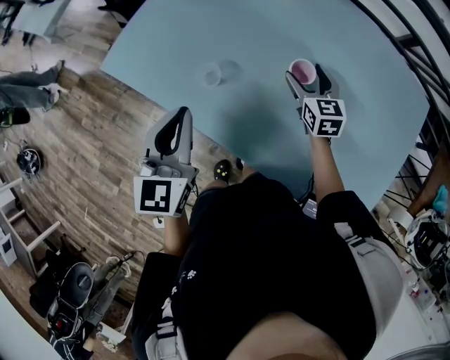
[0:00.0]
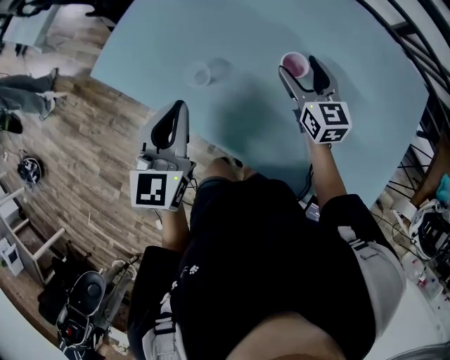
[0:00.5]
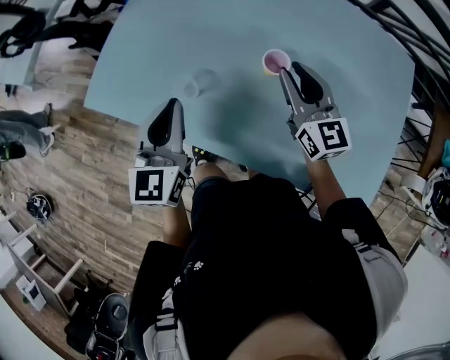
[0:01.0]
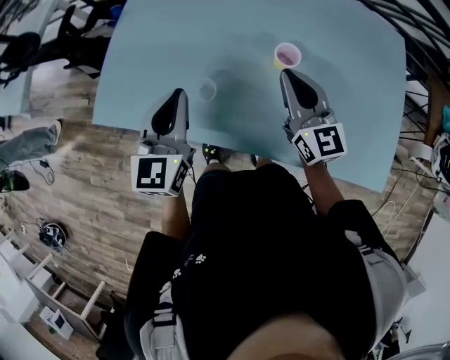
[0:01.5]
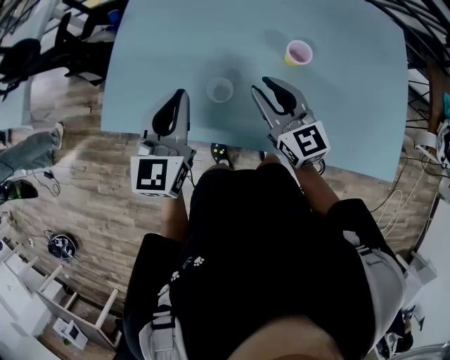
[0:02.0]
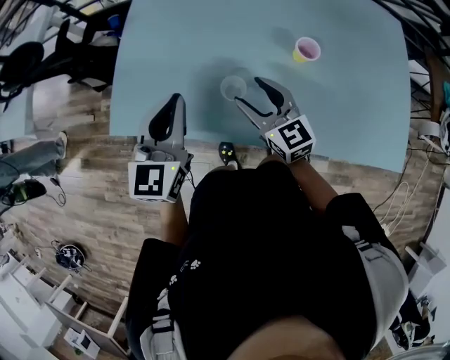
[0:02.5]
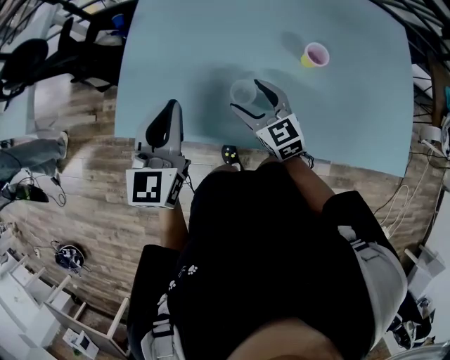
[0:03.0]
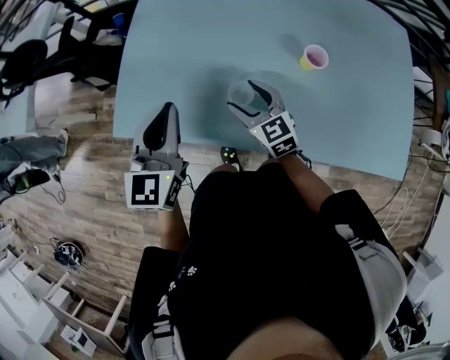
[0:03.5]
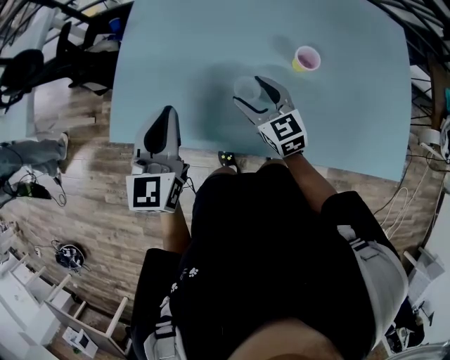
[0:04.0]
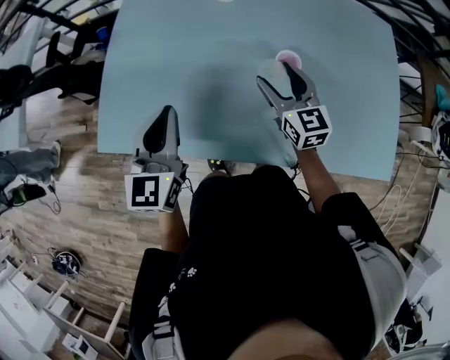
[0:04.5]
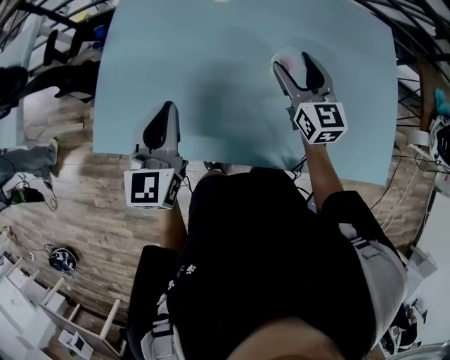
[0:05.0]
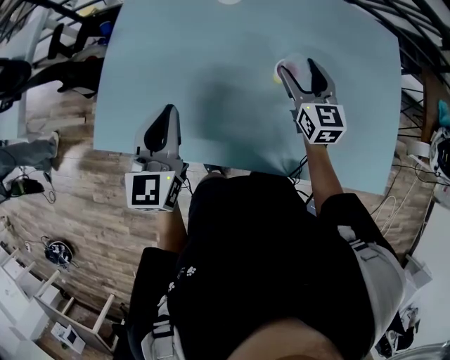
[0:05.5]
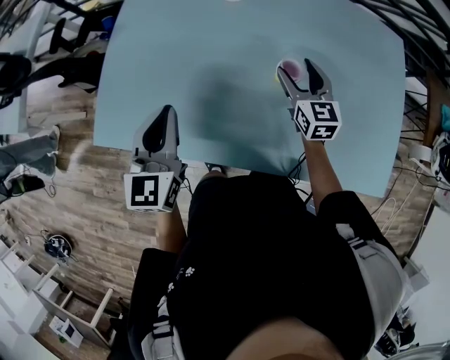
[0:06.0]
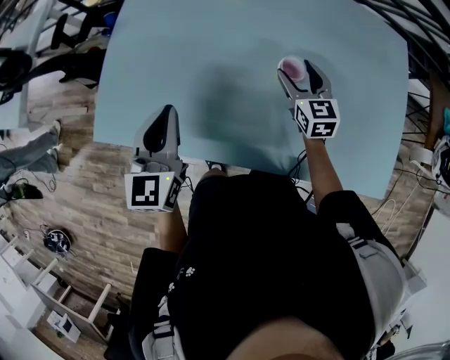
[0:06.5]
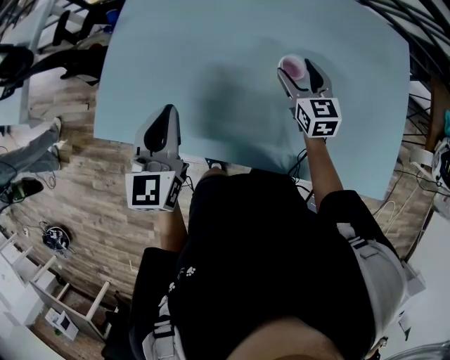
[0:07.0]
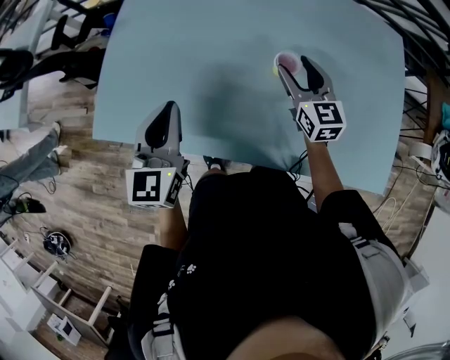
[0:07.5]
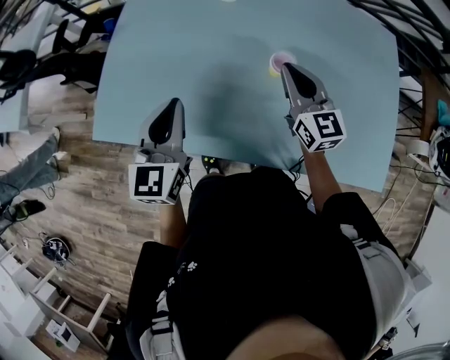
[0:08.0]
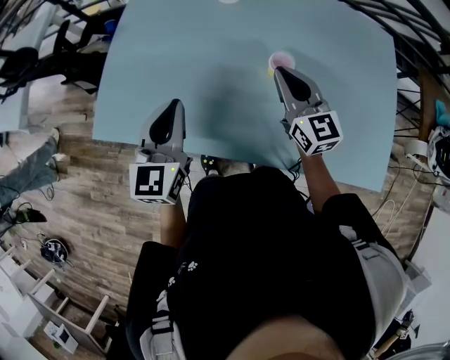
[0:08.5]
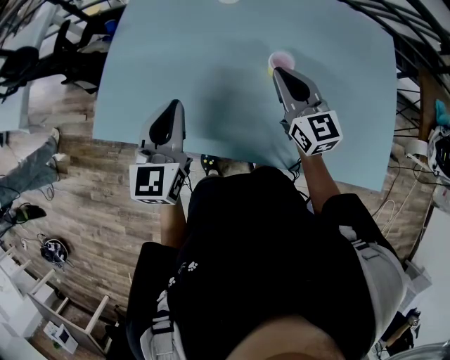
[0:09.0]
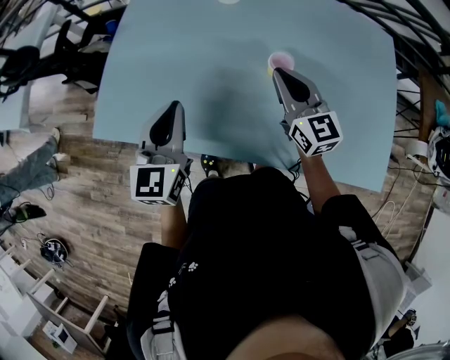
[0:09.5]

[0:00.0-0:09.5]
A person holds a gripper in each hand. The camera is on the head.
0:00.0 to 0:02.0: The left gripper goes roughly 10 cm forward and to the left, and changes its angle by approximately 30 degrees. Meanwhile the right gripper shifts some 20 cm to the left, backward and upward, and closes.
0:02.0 to 0:04.0: The right gripper shifts about 5 cm downward, and opens up; the left gripper shifts approximately 5 cm to the left.
0:04.0 to 0:05.5: The left gripper is displaced to the right by about 10 cm. Meanwhile the right gripper is displaced to the right and forward by roughly 20 cm, and turns by about 20 degrees.
0:05.5 to 0:07.5: The grippers stay close to where they were, moving slightly.
0:07.5 to 0:09.5: The right gripper is displaced upward and backward by approximately 10 cm, and closes.

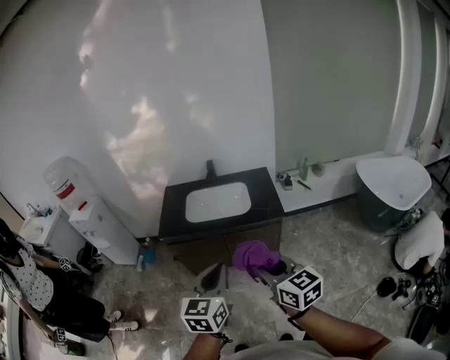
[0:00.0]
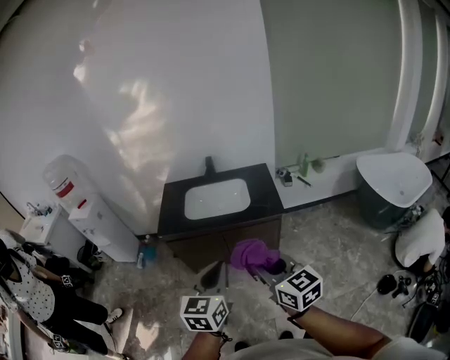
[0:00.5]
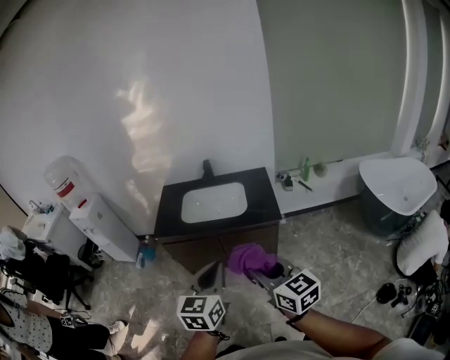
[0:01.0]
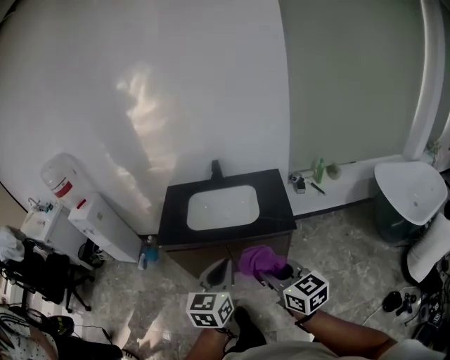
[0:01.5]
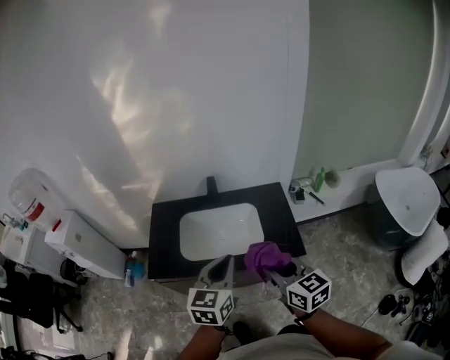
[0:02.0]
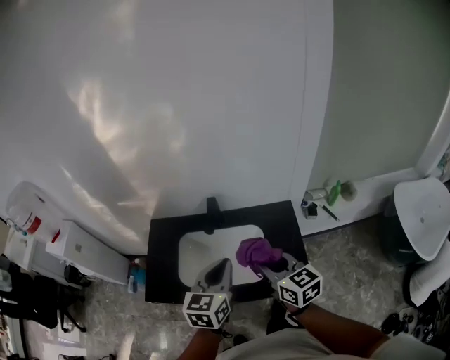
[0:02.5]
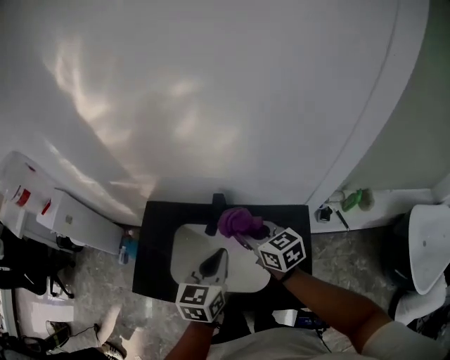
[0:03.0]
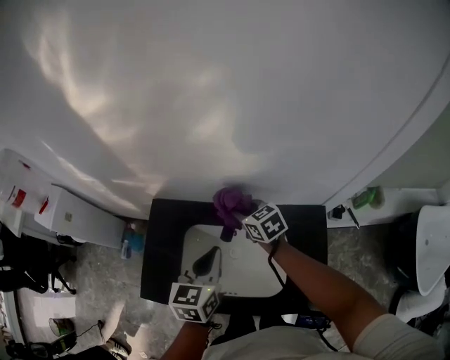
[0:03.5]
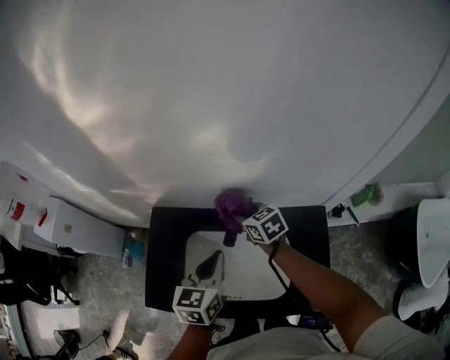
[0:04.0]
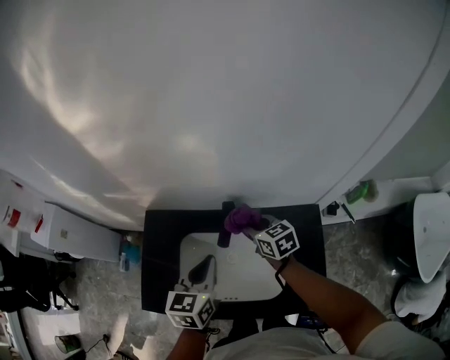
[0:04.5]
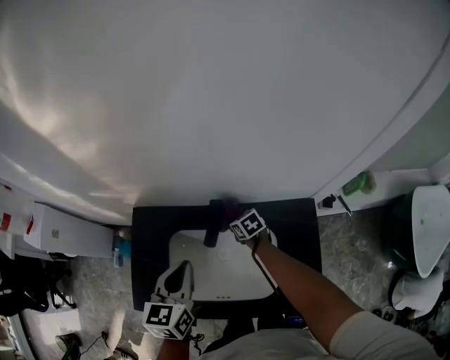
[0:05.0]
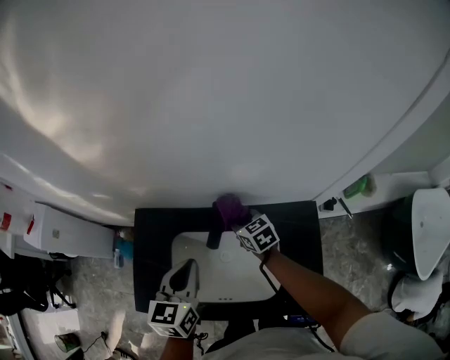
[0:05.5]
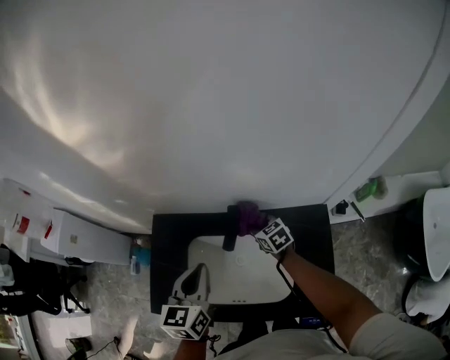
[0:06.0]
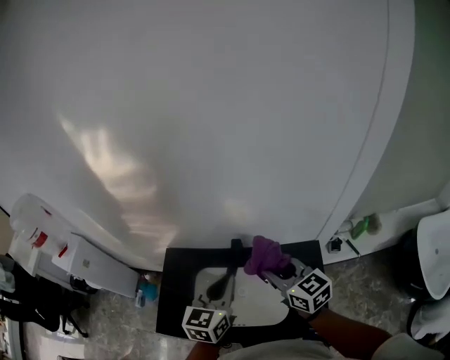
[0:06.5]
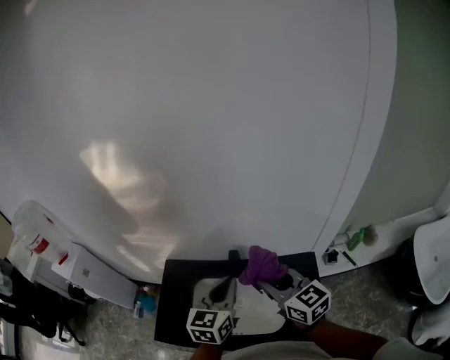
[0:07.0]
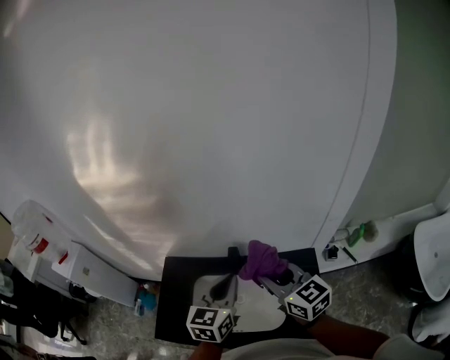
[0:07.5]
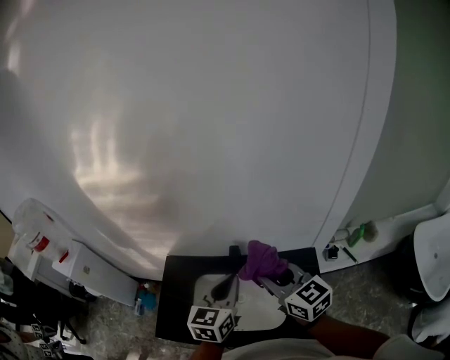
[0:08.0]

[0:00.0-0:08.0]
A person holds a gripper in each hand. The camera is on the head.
0:00.0 to 0:02.0: Both grippers travel together forward, about 40 cm.
0:02.0 to 0:04.0: Both grippers move forward, some 50 cm. The right gripper swivels roughly 30 degrees.
0:04.0 to 0:06.0: The right gripper travels downward and to the right by approximately 10 cm.
0:06.0 to 0:08.0: The right gripper goes about 40 cm upward and backward, and angles its fingers upward, by approximately 30 degrees; the left gripper goes approximately 15 cm upward and to the right.

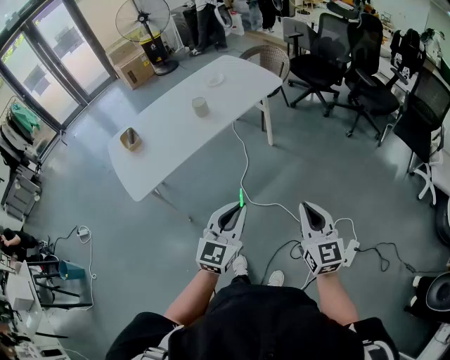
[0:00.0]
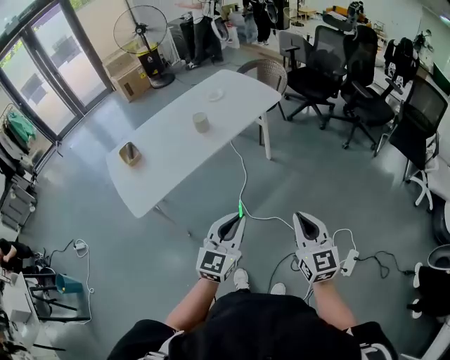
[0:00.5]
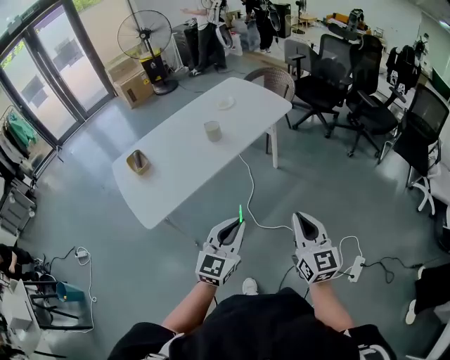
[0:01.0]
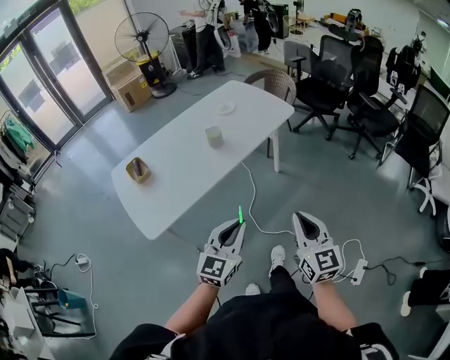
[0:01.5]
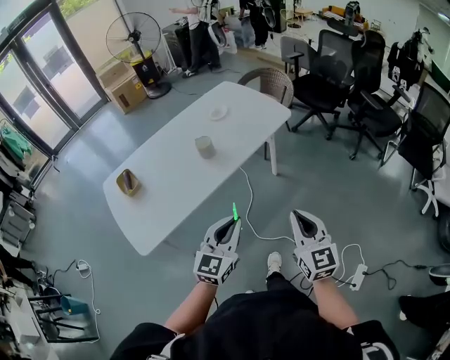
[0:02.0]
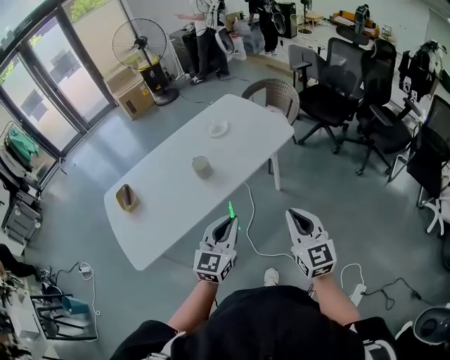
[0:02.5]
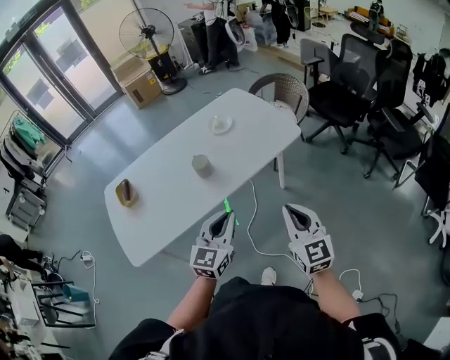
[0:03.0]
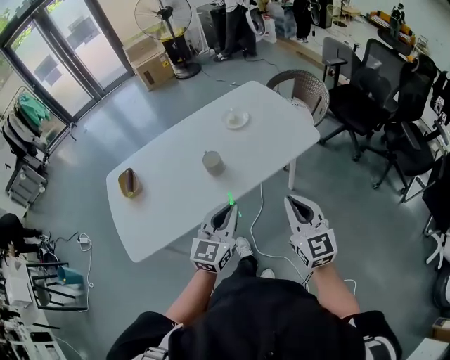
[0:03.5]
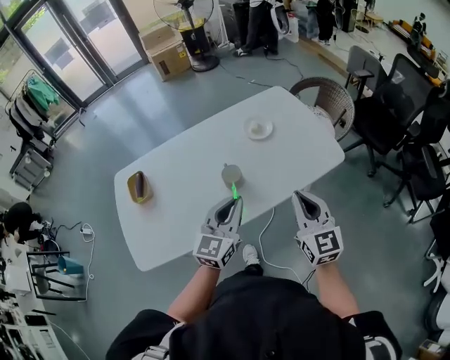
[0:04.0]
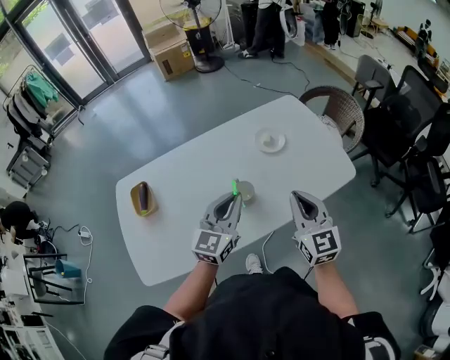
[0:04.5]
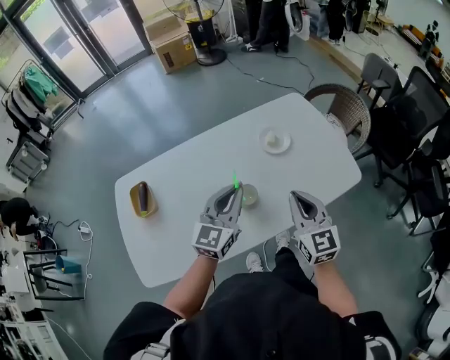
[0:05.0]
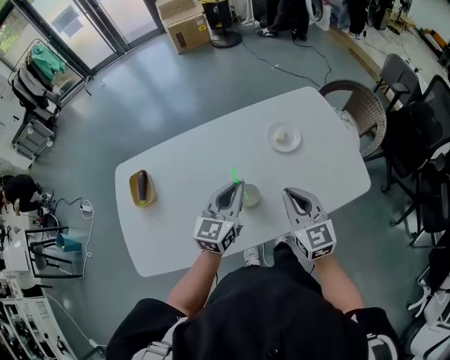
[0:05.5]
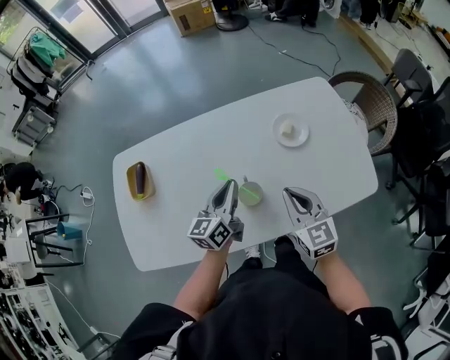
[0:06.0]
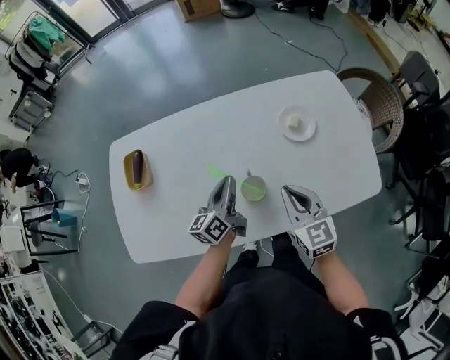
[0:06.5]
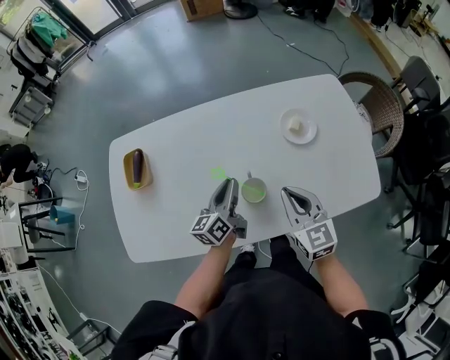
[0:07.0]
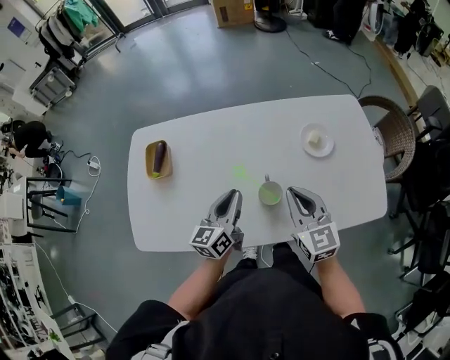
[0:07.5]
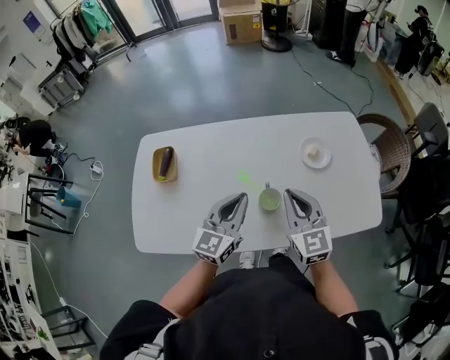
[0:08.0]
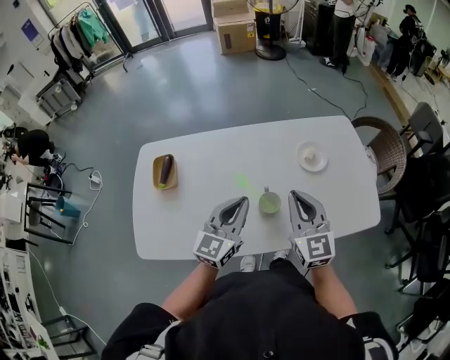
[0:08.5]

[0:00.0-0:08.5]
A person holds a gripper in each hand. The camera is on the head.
0:00.0 to 0:02.0: Both grippers travel together forward and to the left, some 20 cm.
0:02.0 to 0:04.0: Both grippers move forward, roughly 35 cm.
0:04.0 to 0:06.5: The two grippers go approximately 25 cm forward, downward and to the left. The left gripper rotates around the line of its fingers by roughly 40 degrees, counterclockwise from behind, while the right gripper rotates about 30 degrees.
0:06.5 to 0:08.5: The left gripper moves upward and backward, about 15 cm, and swivels roughly 40 degrees; the right gripper goes roughly 10 cm upward.

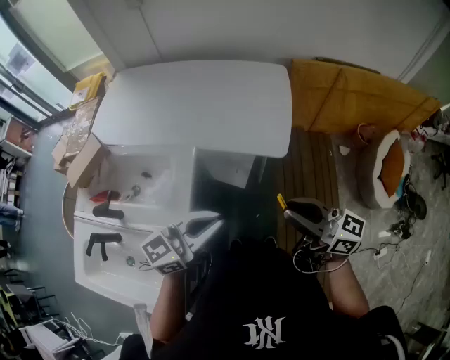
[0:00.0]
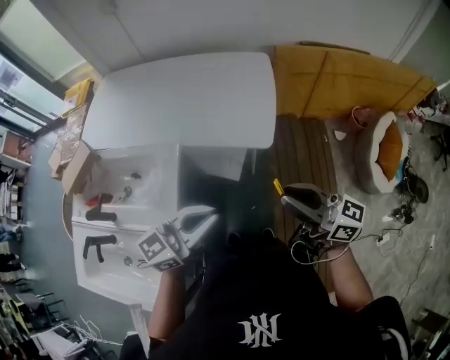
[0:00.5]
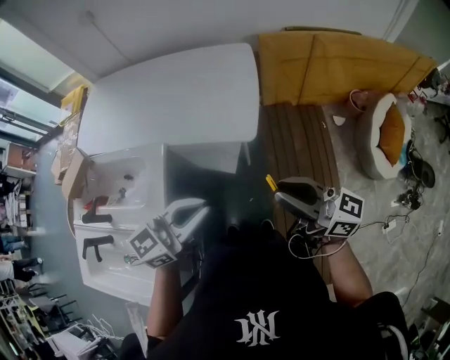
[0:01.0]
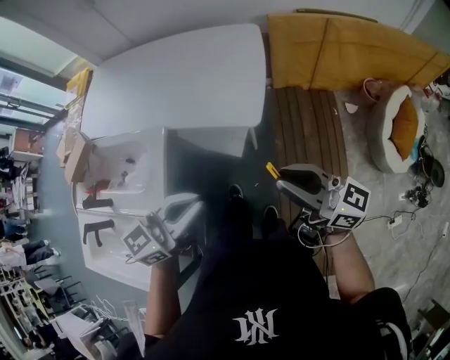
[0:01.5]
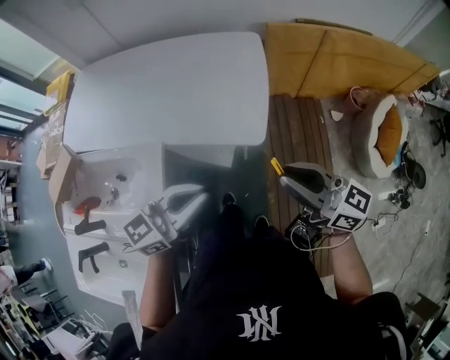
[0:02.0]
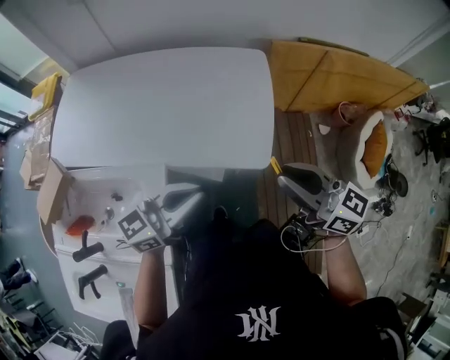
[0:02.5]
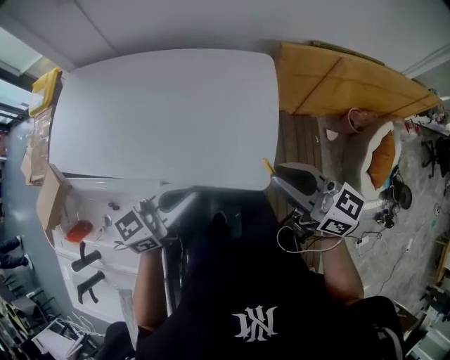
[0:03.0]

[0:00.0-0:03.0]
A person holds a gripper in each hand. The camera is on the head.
0:00.0 to 0:01.5: The two grippers go about 15 cm to the right.
0:01.5 to 0:03.0: Both grippers move forward, approximately 30 cm.
